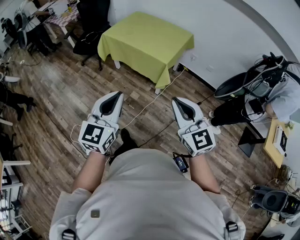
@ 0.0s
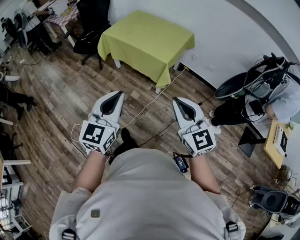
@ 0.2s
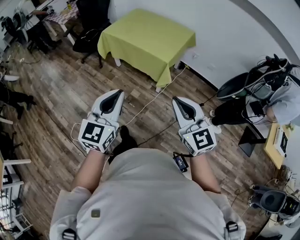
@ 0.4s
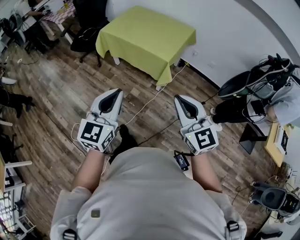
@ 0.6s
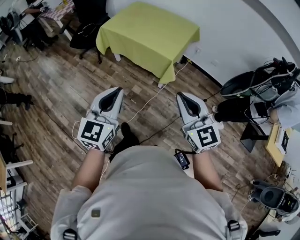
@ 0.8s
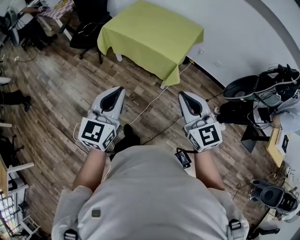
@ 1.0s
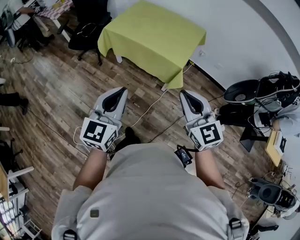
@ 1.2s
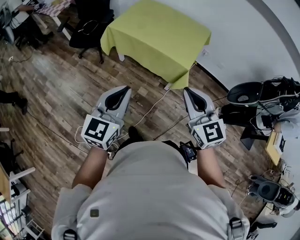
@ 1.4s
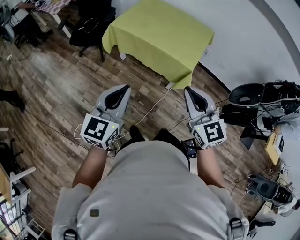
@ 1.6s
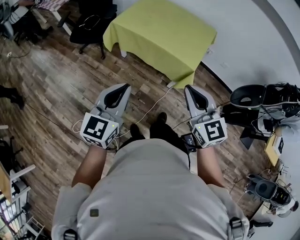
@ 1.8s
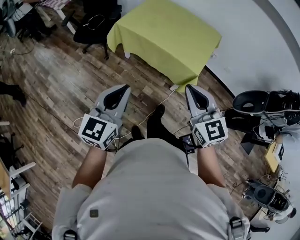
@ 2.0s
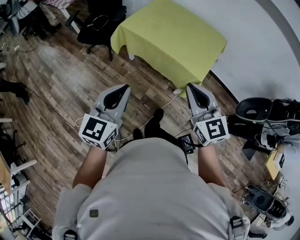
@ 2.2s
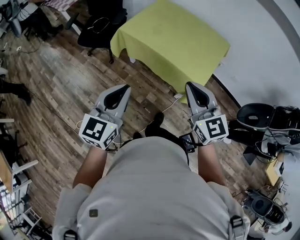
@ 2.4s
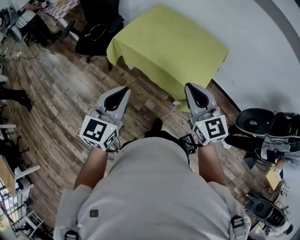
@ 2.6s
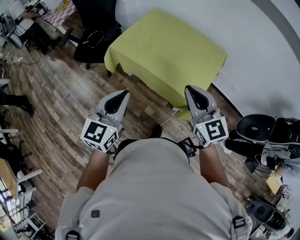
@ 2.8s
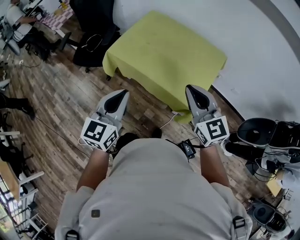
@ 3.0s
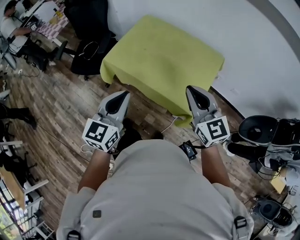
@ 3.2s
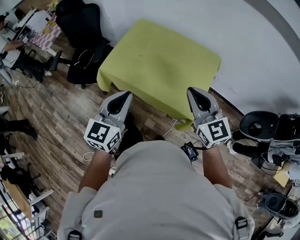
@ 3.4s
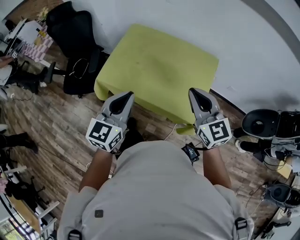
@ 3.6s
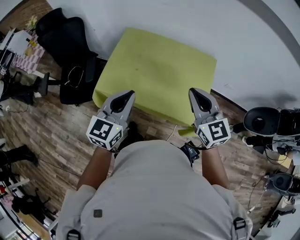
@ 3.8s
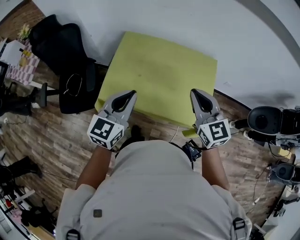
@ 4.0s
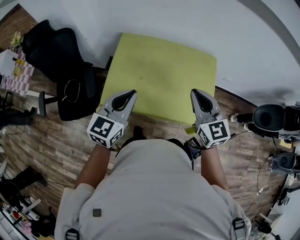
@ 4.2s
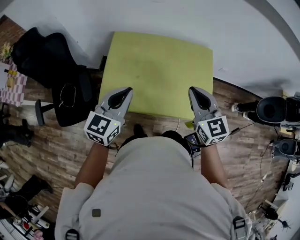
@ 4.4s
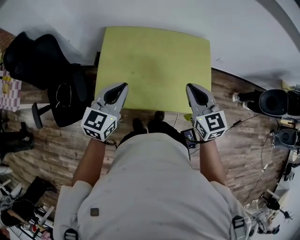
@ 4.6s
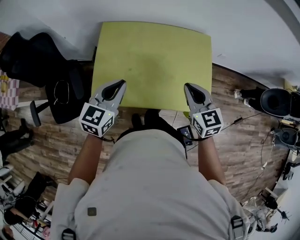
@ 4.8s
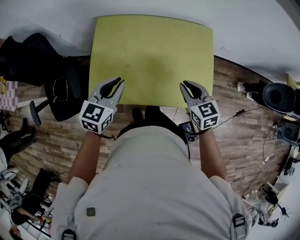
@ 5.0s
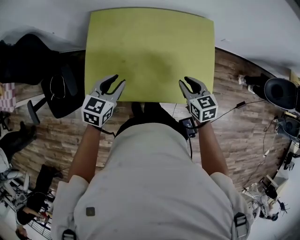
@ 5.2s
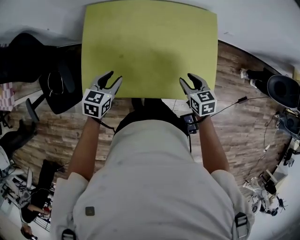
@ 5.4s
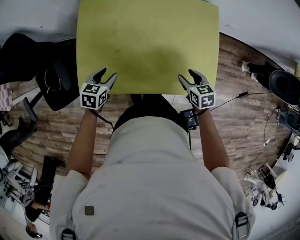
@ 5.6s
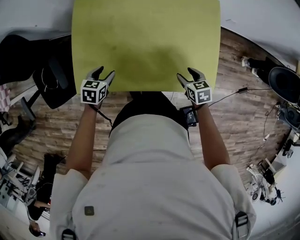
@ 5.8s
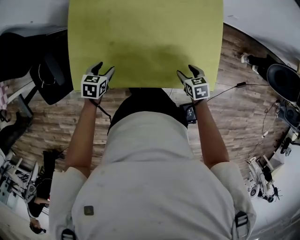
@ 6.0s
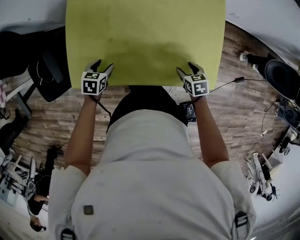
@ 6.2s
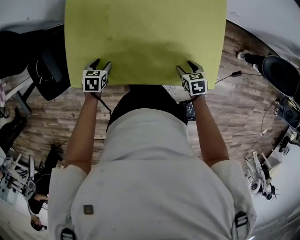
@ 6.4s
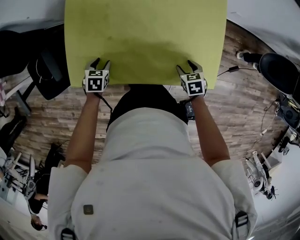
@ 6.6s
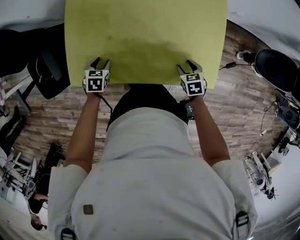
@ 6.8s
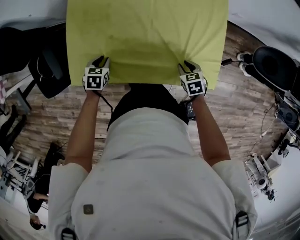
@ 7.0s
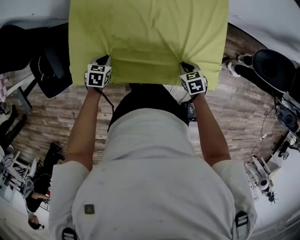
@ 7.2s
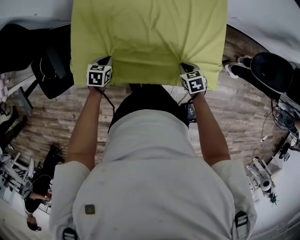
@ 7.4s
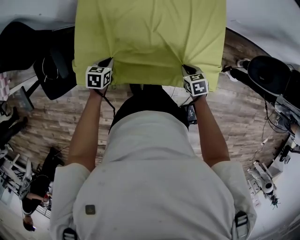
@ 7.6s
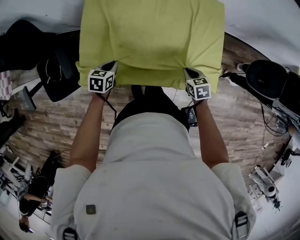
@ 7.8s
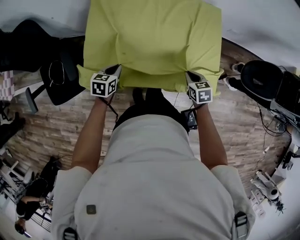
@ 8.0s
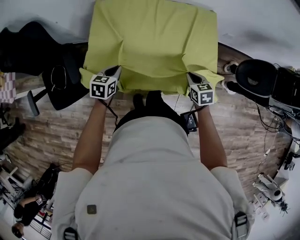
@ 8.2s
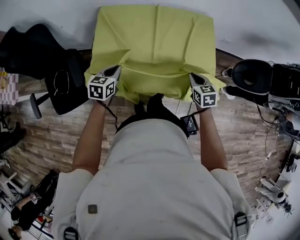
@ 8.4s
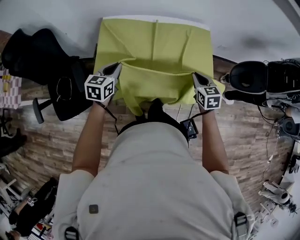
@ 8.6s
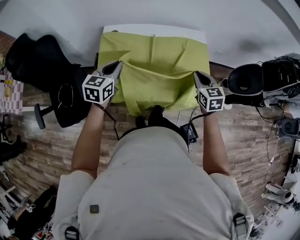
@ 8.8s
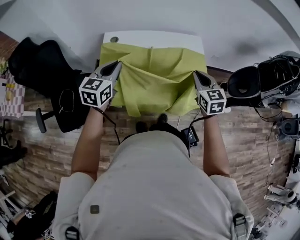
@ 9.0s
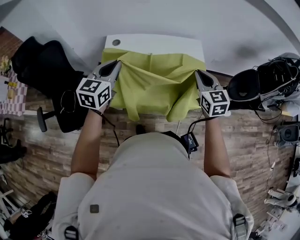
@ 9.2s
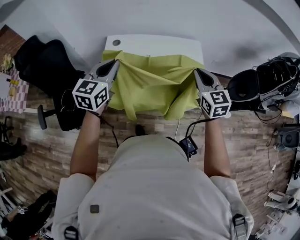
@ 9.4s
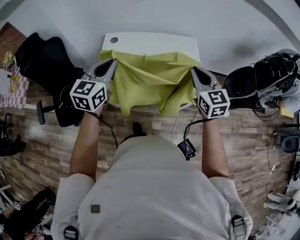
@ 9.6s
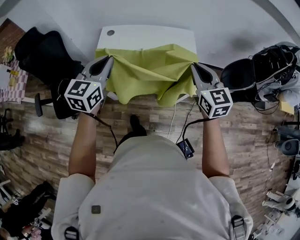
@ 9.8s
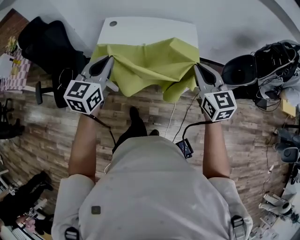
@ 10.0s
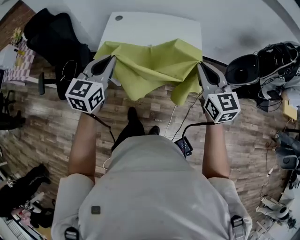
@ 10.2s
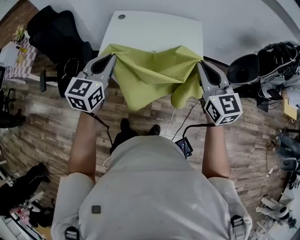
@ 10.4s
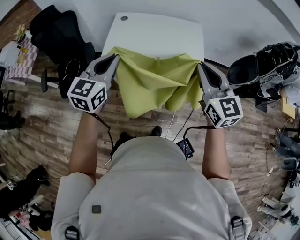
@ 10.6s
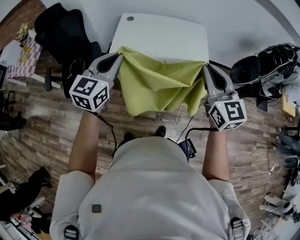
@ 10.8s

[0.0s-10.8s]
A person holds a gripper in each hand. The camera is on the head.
0.0s to 1.6s: Both grippers move forward and to the left, about 30 cm.
1.6s to 3.0s: The two grippers go about 30 cm forward.
3.0s to 4.6s: The left gripper shifts by about 40 cm, and turns by some 40 degrees. Meanwhile the right gripper changes place by approximately 25 cm, and changes its angle by approximately 40 degrees.
4.6s to 6.2s: Both grippers move downward, roughly 40 cm. The right gripper tips its fingers downward by roughly 40 degrees, and opens up, while the left gripper angles its fingers downward, by about 50 degrees, and opens its fingers.
6.2s to 7.8s: The left gripper changes place by roughly 5 cm, and closes up, while the right gripper closes.
7.8s to 9.2s: Both grippers travel together upward, roughly 35 cm. The left gripper tips its fingers upward by roughly 40 degrees. Meanwhile the right gripper points its fingers approximately 40 degrees further upward.
9.2s to 10.8s: The left gripper shifts some 30 cm backward; the right gripper heads backward and upward, covering approximately 30 cm.

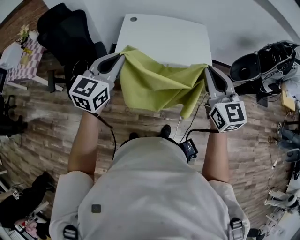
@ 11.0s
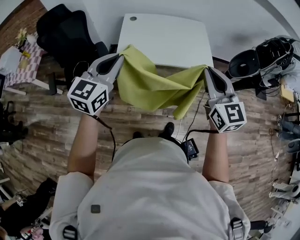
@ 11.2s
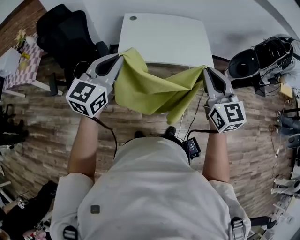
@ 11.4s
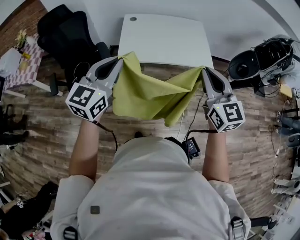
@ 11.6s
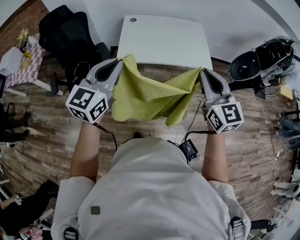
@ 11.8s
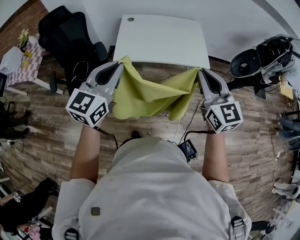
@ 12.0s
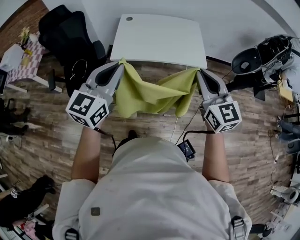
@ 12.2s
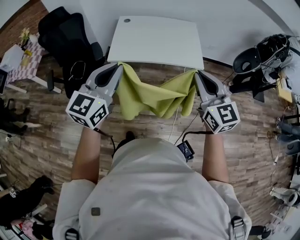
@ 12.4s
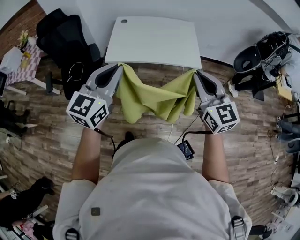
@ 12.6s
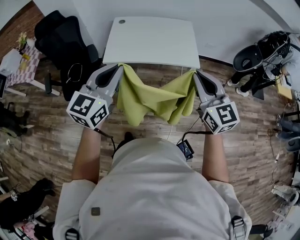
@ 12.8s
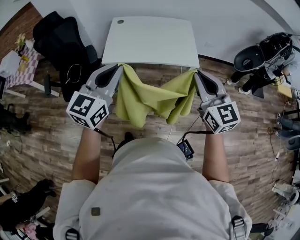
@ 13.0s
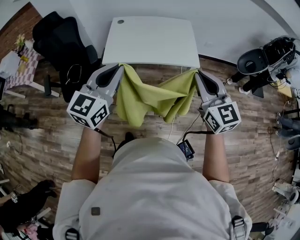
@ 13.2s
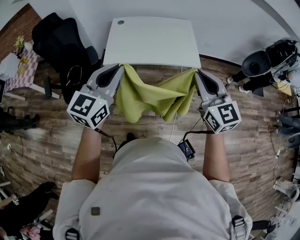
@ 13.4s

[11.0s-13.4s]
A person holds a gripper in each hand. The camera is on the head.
11.0s to 12.2s: Both grippers move backward, some 15 cm.

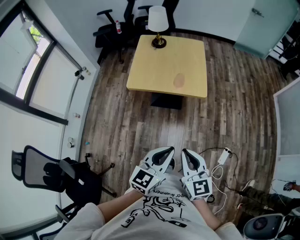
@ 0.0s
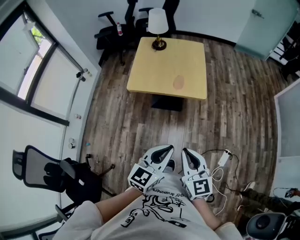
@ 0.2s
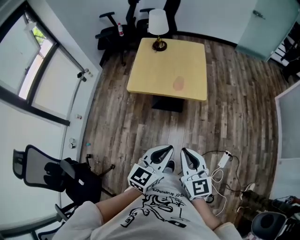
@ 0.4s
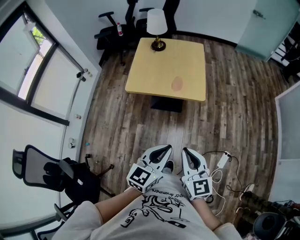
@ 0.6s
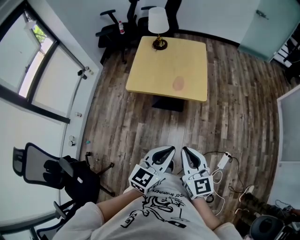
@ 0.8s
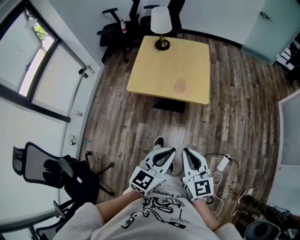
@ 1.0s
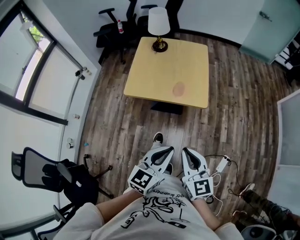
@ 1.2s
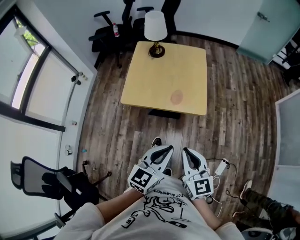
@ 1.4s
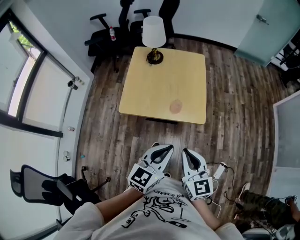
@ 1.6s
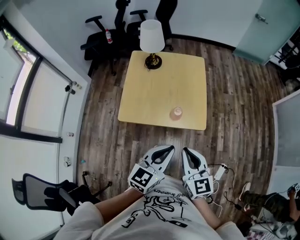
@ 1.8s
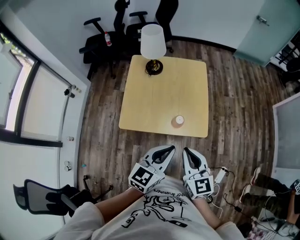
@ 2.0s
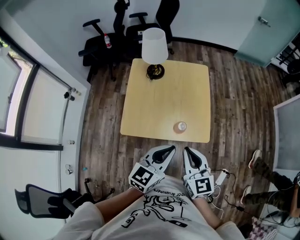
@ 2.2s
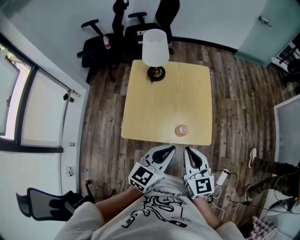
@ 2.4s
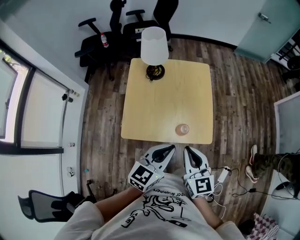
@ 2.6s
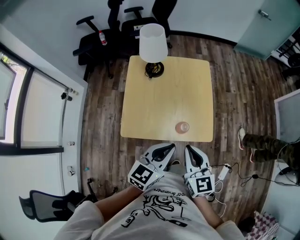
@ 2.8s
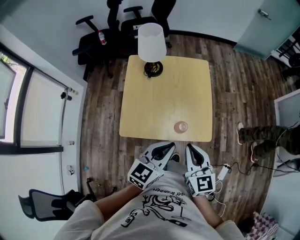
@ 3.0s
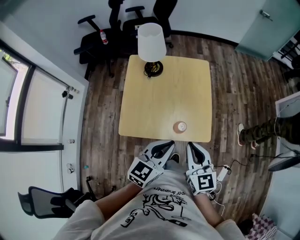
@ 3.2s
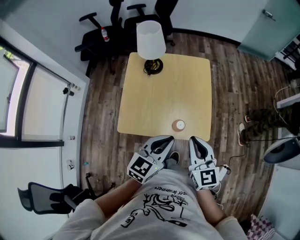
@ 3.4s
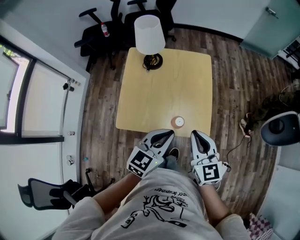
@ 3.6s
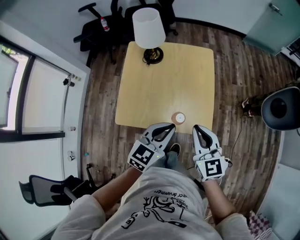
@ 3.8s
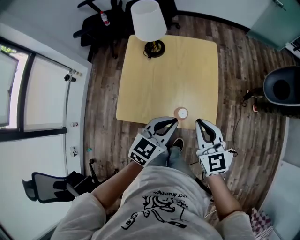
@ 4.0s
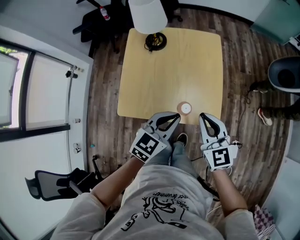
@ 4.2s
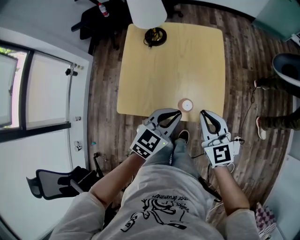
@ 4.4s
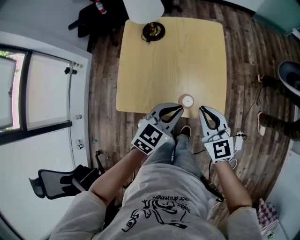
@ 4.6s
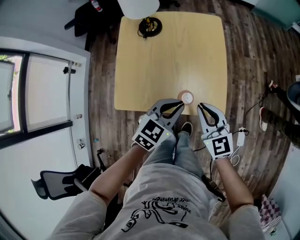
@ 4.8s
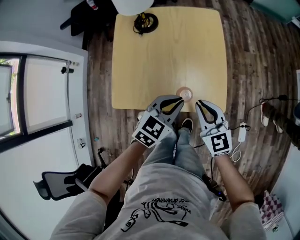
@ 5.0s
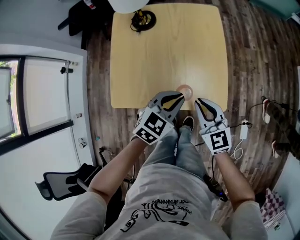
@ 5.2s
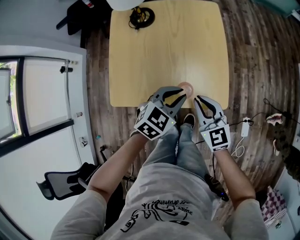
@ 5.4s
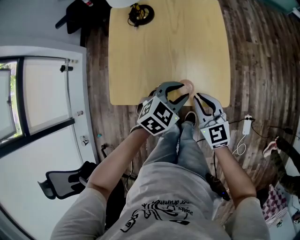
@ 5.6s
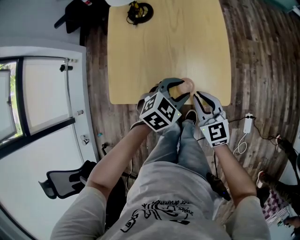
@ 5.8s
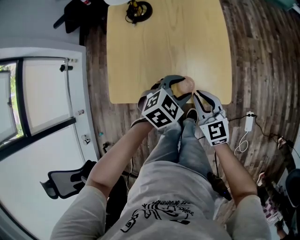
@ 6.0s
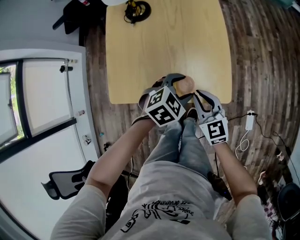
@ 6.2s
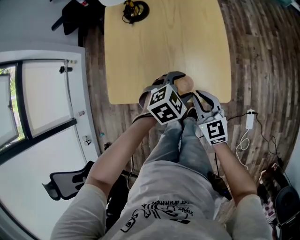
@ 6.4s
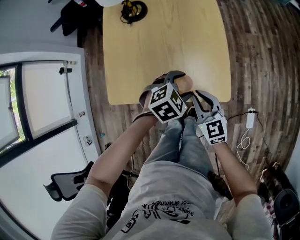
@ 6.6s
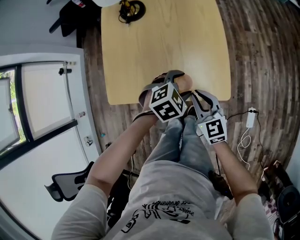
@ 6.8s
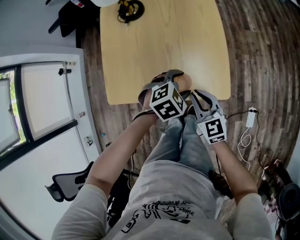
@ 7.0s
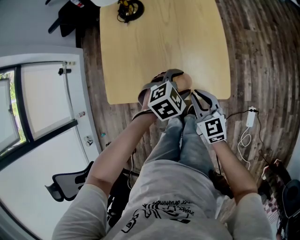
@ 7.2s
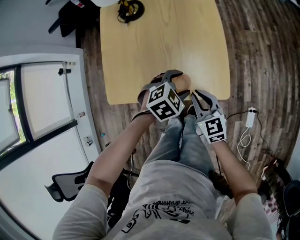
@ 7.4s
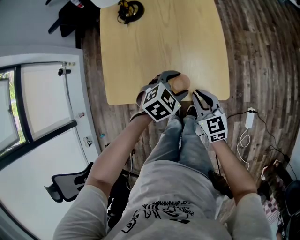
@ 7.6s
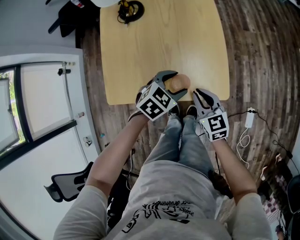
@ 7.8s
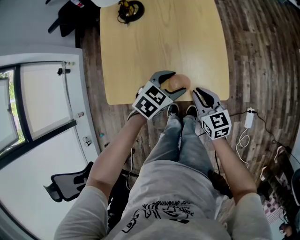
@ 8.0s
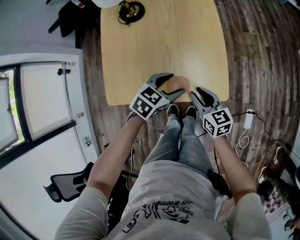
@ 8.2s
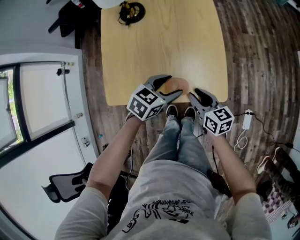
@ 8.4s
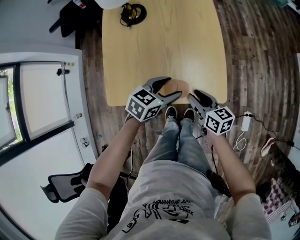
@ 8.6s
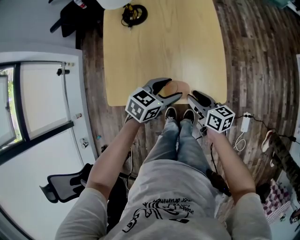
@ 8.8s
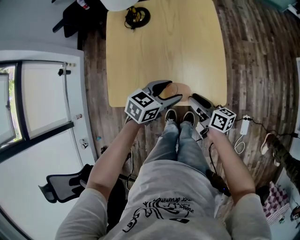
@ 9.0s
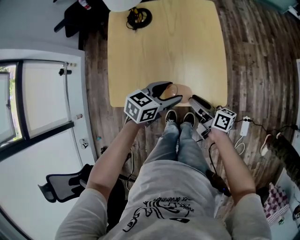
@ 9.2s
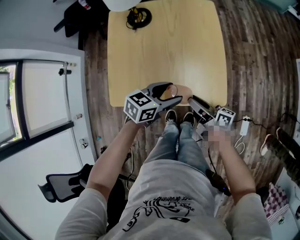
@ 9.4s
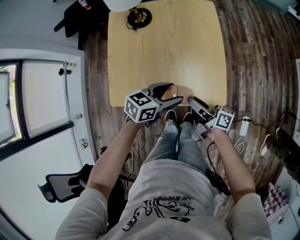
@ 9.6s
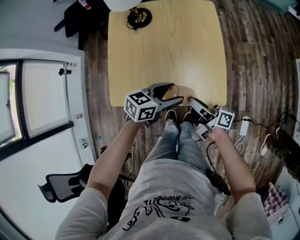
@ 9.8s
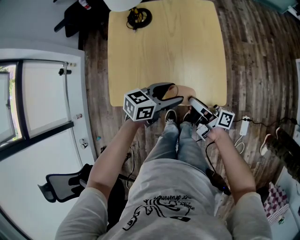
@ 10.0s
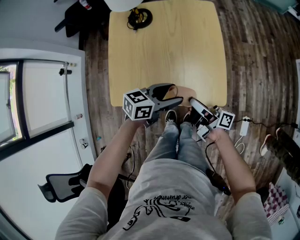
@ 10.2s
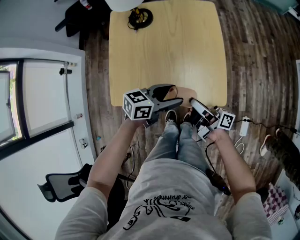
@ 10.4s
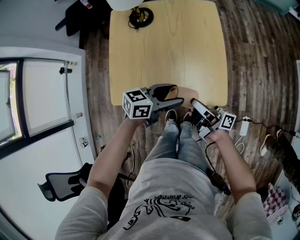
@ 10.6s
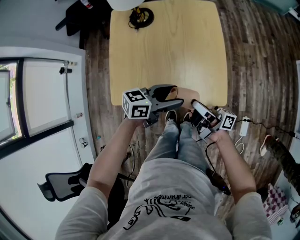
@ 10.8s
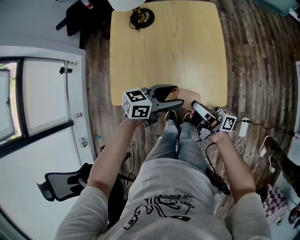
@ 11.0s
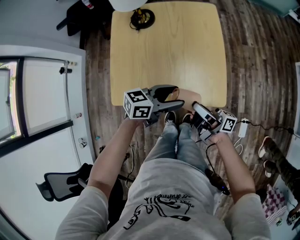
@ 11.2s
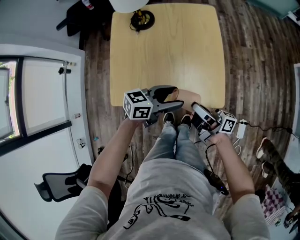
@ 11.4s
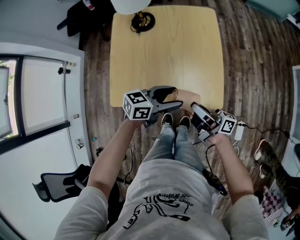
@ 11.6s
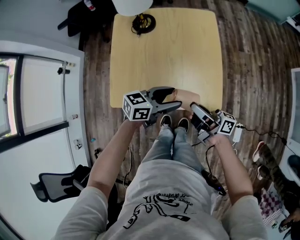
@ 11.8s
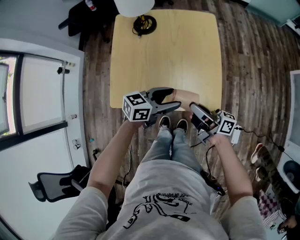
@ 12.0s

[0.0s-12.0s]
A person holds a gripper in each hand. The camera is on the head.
0.0s to 1.6s: The grippers both shift forward by about 20 cm.
1.6s to 3.0s: The grippers both shift forward by roughly 15 cm.
3.0s to 4.4s: The left gripper heads downward and forward, covering roughly 10 cm. The right gripper moves forward and downward, some 10 cm.
4.4s to 6.0s: Both grippers travel together downward, about 15 cm. The left gripper rotates some 30 degrees, and opens.
6.0s to 7.6s: The grippers move only a little.
7.6s to 9.0s: The left gripper changes place by roughly 5 cm, and swivels some 30 degrees. Meanwhile the right gripper rolls clockwise, seen from behind, by about 50 degrees, and opens up.
9.0s to 10.4s: The right gripper is displaced upward by some 5 cm, and points its fingers approximately 30 degrees further upward.
10.4s to 12.0s: There are only small adjustments of the grippers.
